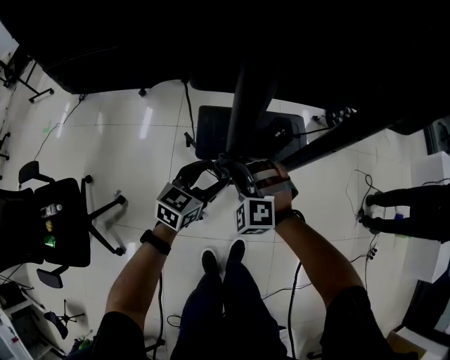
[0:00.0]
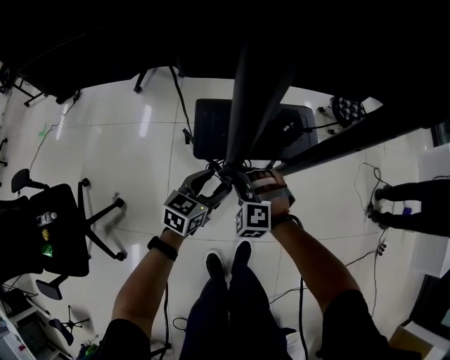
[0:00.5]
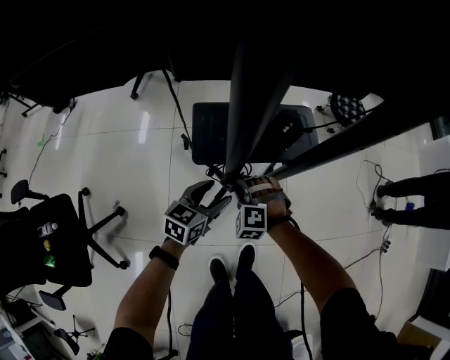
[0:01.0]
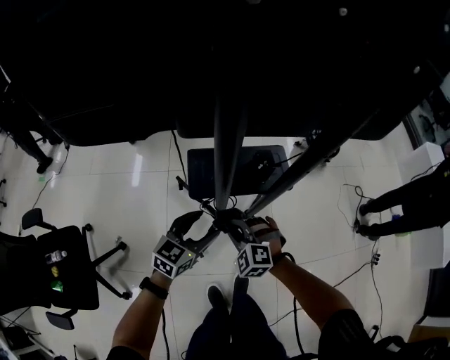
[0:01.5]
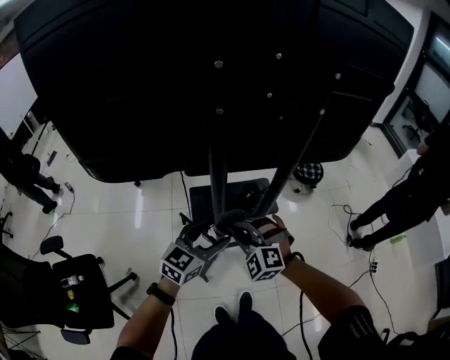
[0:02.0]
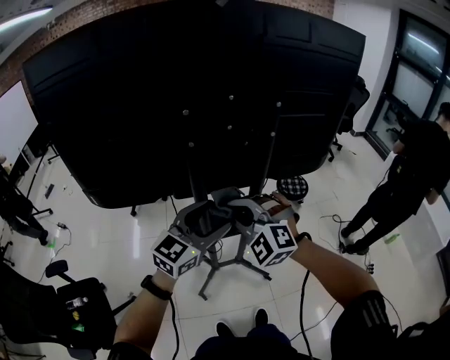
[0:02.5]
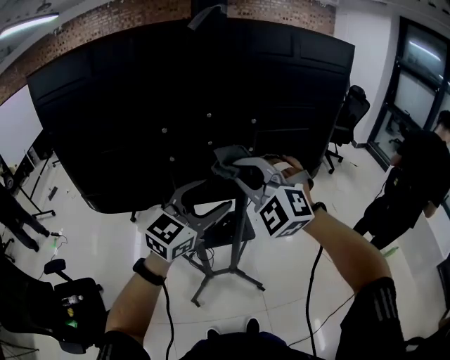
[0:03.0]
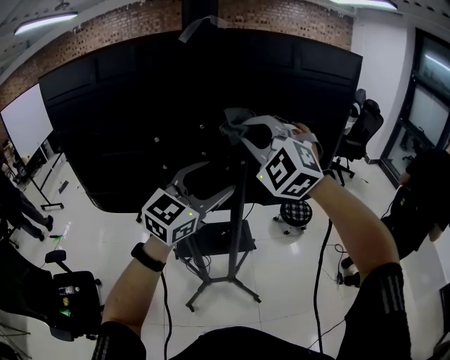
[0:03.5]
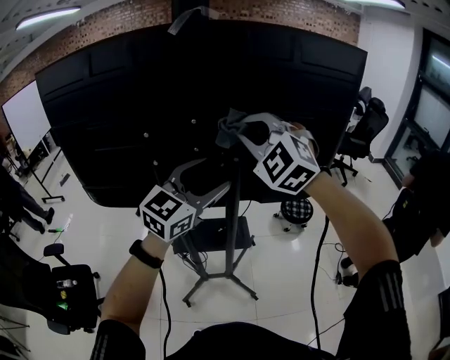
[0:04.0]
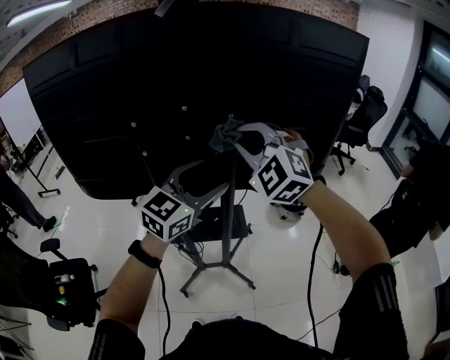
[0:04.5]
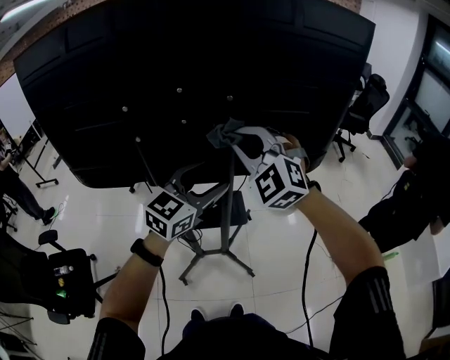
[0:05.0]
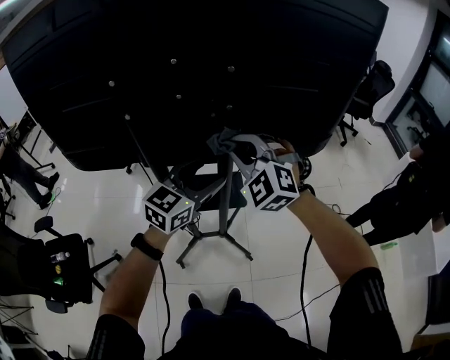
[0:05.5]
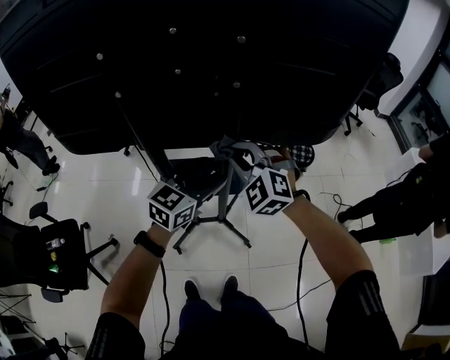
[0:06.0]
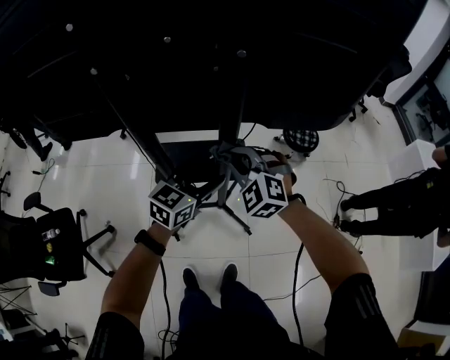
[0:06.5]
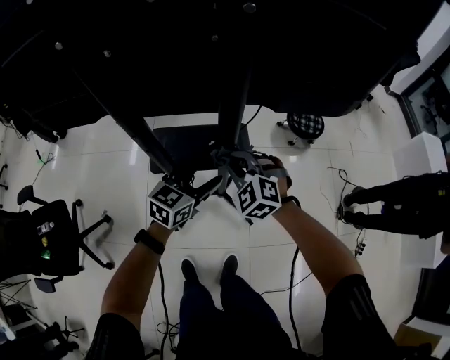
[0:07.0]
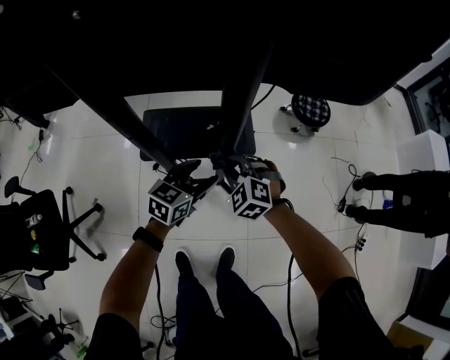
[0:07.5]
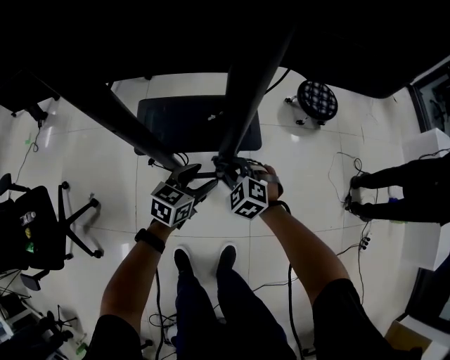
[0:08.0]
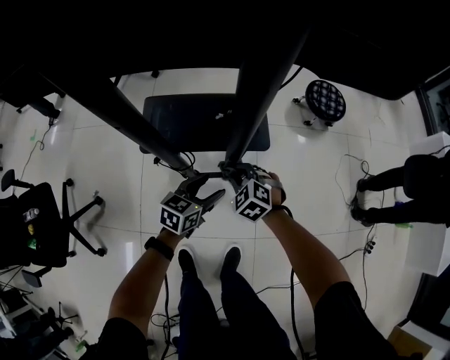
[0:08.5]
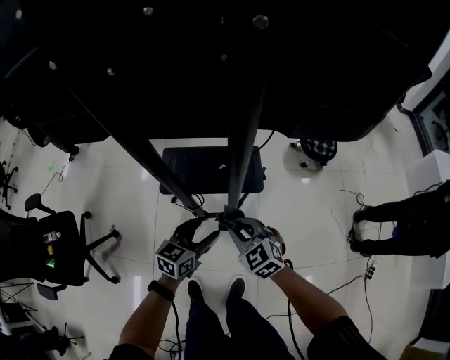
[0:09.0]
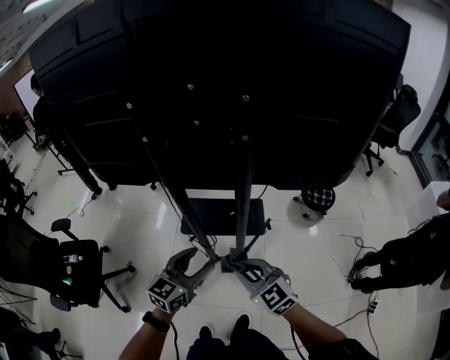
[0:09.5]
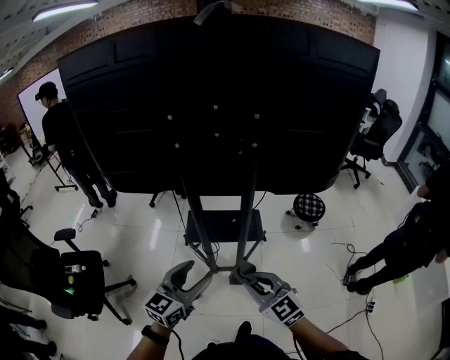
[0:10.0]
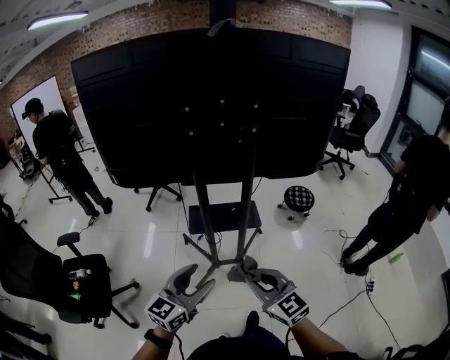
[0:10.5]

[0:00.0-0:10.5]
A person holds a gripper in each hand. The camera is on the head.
0:00.0 to 0:02.0: The right gripper travels upward and backward by about 20 cm, while the left gripper moves upward, some 20 cm.
0:02.0 to 0:04.0: The left gripper heads upward and to the right, covering roughly 40 cm, and swivels approximately 20 degrees. Meanwhile the right gripper is displaced upward by approximately 50 cm, and swivels roughly 20 degrees.
0:04.0 to 0:06.5: The two grippers go about 35 cm downward. The right gripper turns by approximately 20 degrees. The left gripper swivels about 30 degrees.
0:06.5 to 0:08.5: The two grippers go some 35 cm downward. The left gripper turns by about 20 degrees; the right gripper changes its angle by some 30 degrees.
0:08.5 to 0:10.5: The two grippers go some 60 cm upward and backward. The right gripper tilts its fingers about 40 degrees upward. The left gripper turns by roughly 30 degrees.

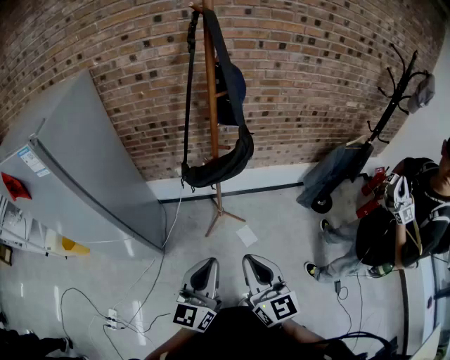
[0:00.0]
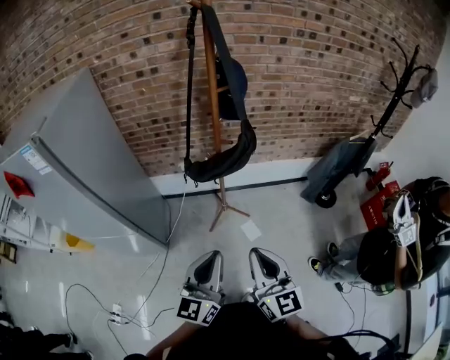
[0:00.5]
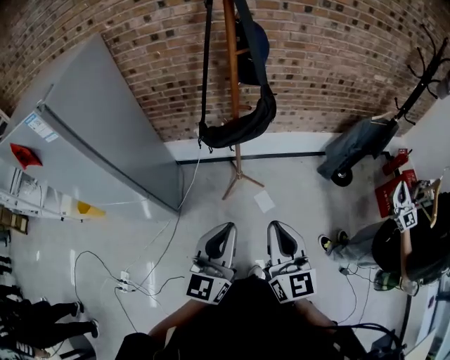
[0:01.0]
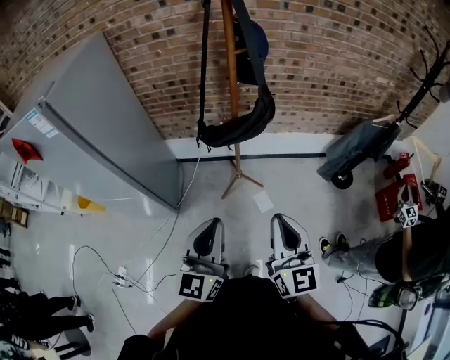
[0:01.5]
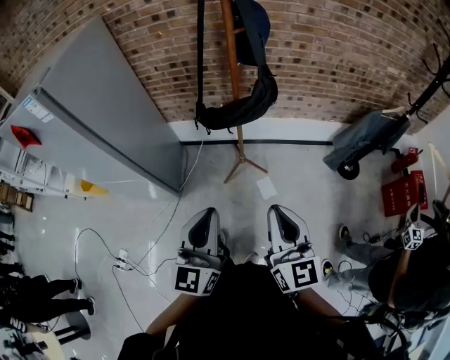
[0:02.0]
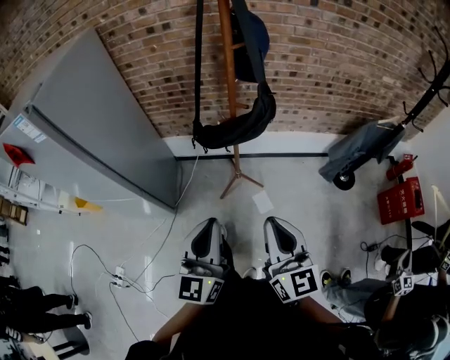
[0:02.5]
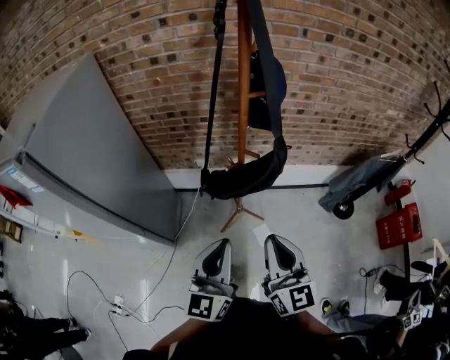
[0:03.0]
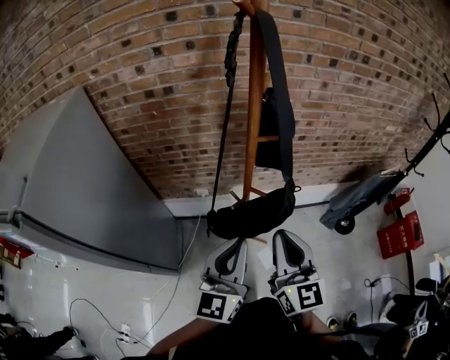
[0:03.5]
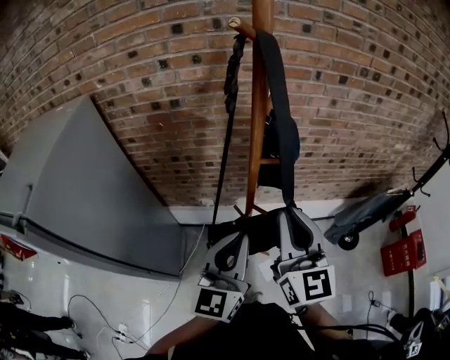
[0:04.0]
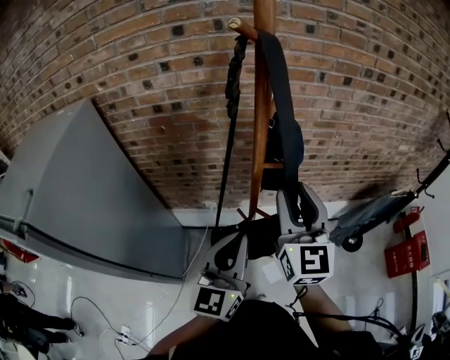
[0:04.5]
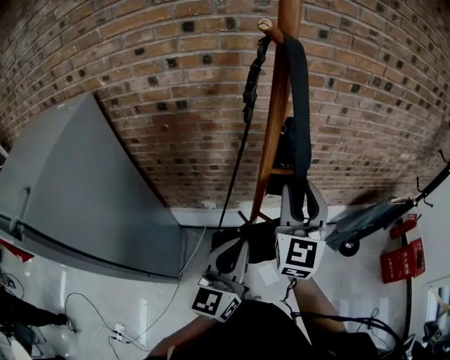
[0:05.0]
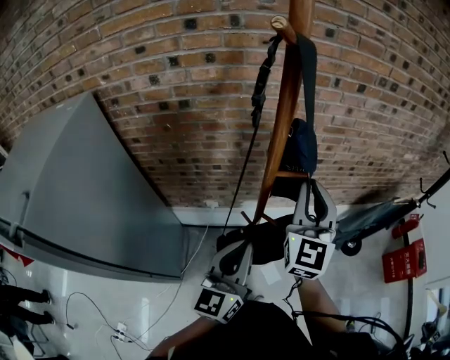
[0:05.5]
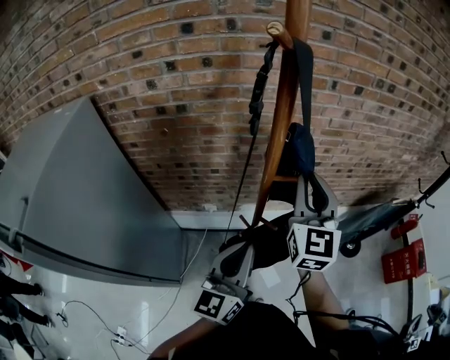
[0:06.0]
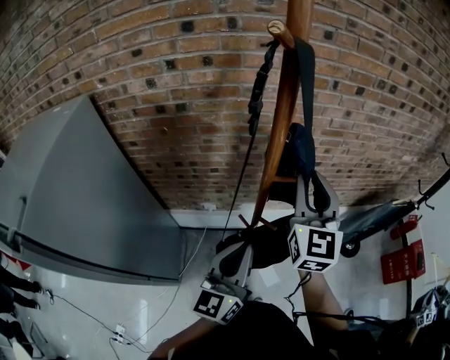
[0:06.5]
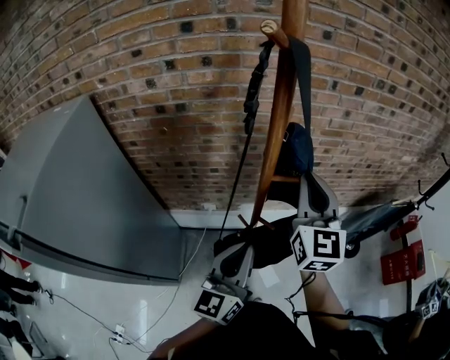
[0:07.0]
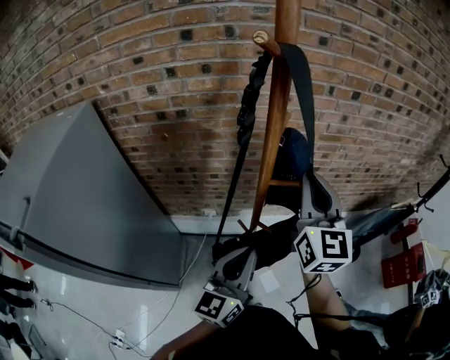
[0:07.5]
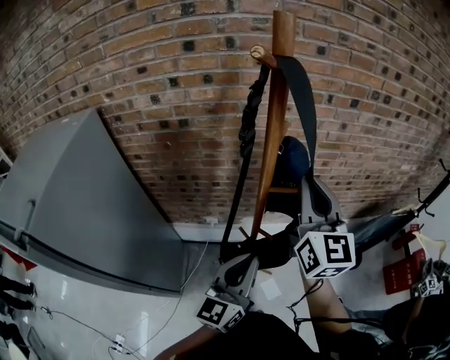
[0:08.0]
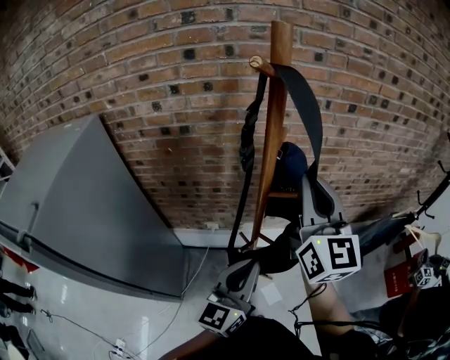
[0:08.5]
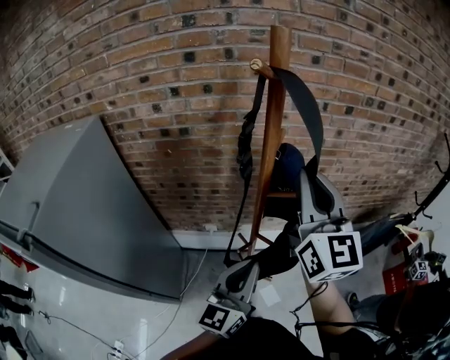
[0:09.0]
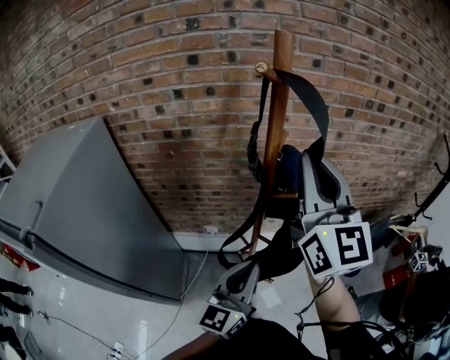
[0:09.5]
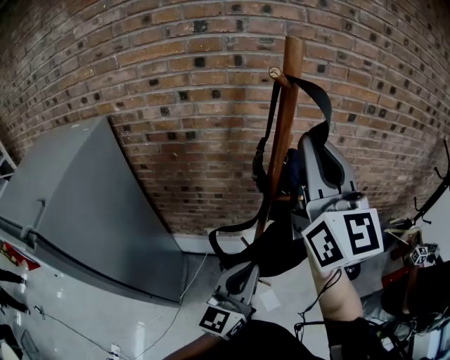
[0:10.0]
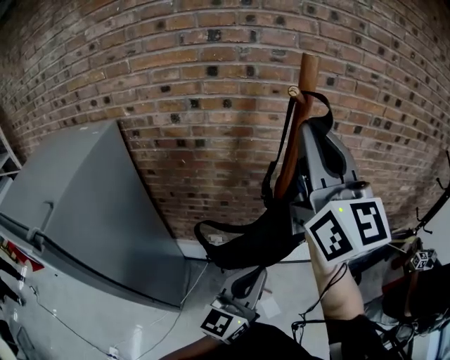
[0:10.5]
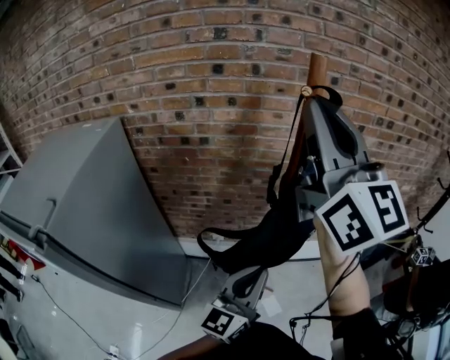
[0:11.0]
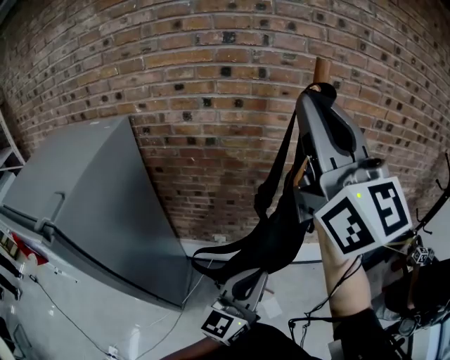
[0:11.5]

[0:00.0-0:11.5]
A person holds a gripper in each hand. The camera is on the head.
0:00.0 to 0:02.0: The right gripper is displaced to the right by about 5 cm.
0:02.0 to 0:04.0: The right gripper goes about 40 cm forward and upward; the left gripper moves forward, some 35 cm.
0:04.0 to 0:06.0: The right gripper is displaced forward by about 15 cm, and opens and closes again, while the left gripper ends up roughly 5 cm from where it was.
0:06.0 to 0:07.5: The grippers make only small movements.
0:07.5 to 0:09.5: The right gripper heads upward, covering approximately 15 cm.
0:09.5 to 0:11.5: The left gripper moves some 5 cm, while the right gripper moves upward and to the left, some 15 cm.

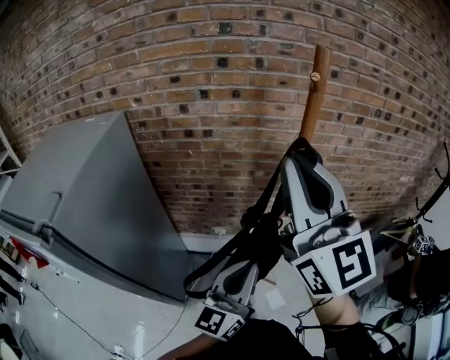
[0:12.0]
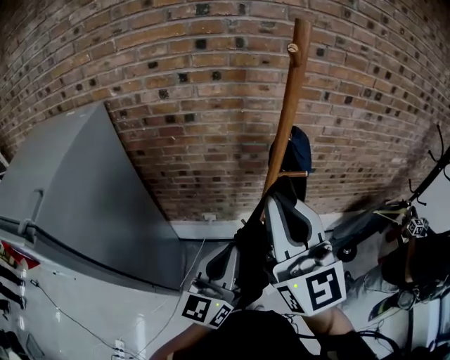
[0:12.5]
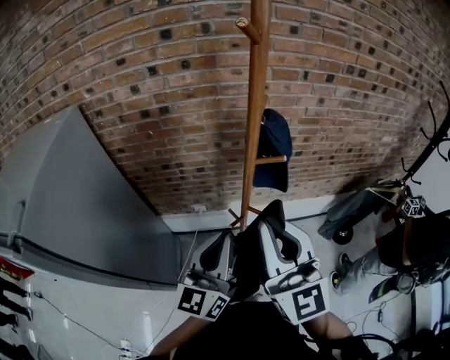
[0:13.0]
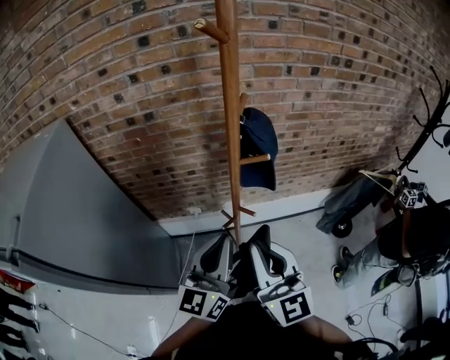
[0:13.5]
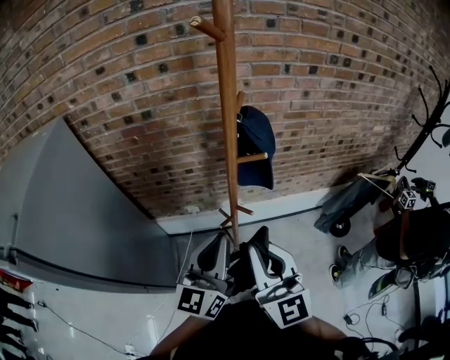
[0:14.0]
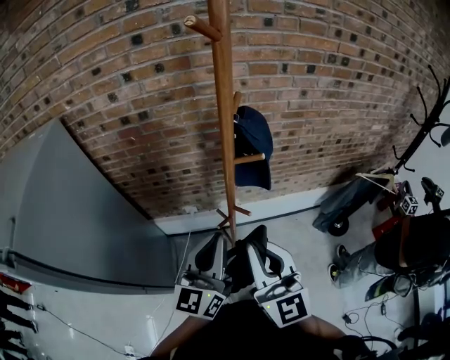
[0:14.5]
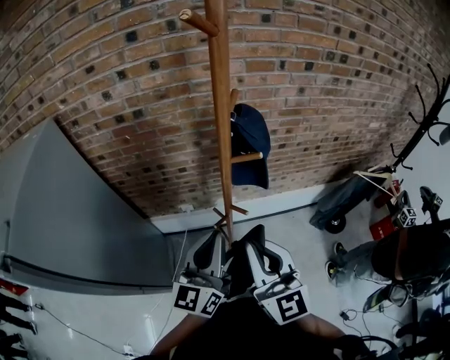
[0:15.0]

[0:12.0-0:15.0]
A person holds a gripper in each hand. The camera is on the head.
0:12.0 to 0:13.5: The right gripper heads downward, covering some 25 cm, while the left gripper shifts roughly 5 cm to the right.
0:13.5 to 0:15.0: The grippers move only a little.

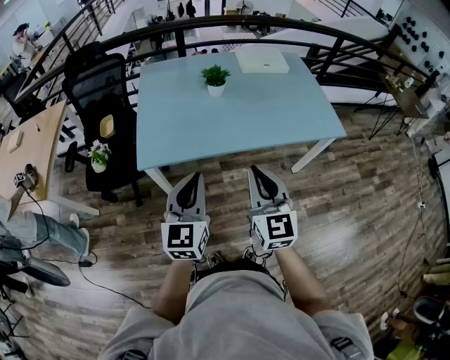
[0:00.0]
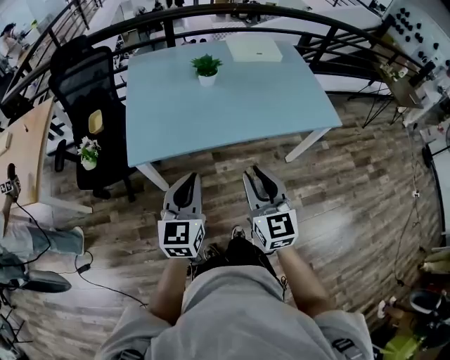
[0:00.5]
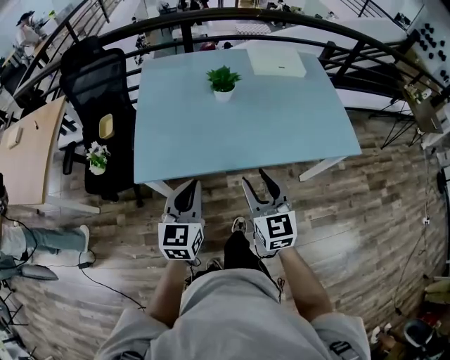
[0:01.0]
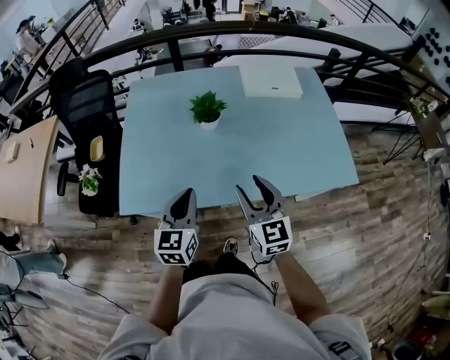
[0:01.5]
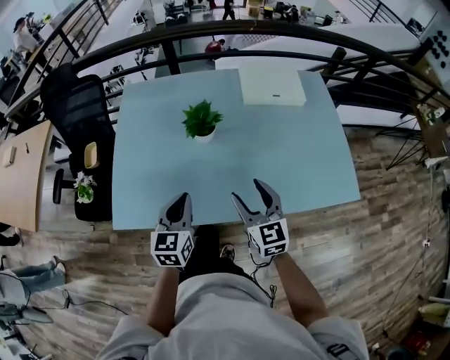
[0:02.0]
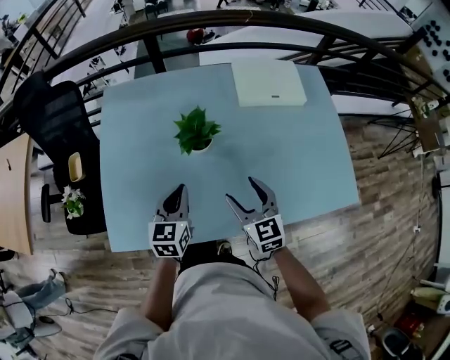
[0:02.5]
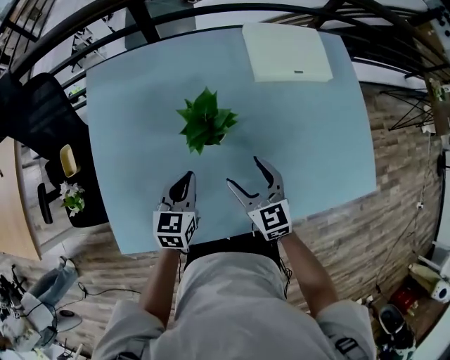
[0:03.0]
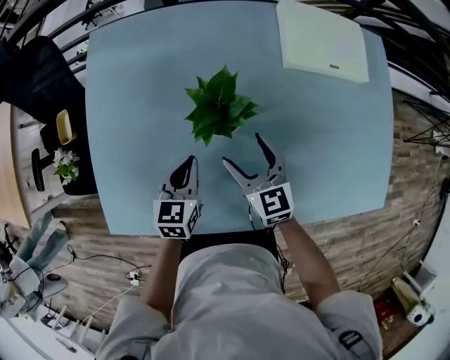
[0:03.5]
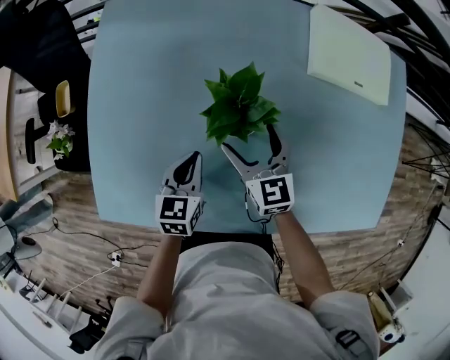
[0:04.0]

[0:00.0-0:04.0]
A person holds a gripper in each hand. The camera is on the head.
0:00.0 to 0:02.0: Both grippers travel together forward and downward, about 35 cm. The right gripper opens its fingers.
0:02.0 to 0:04.0: The right gripper shifts some 30 cm forward and downward, and opens. Meanwhile the left gripper moves downward and forward, roughly 25 cm, and turns by about 20 degrees.
